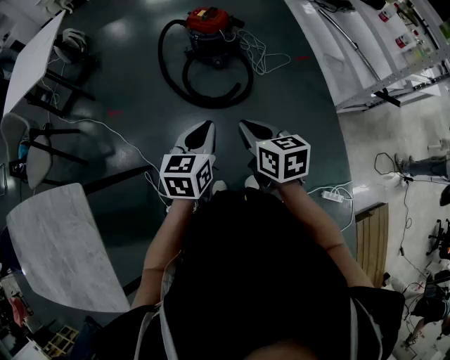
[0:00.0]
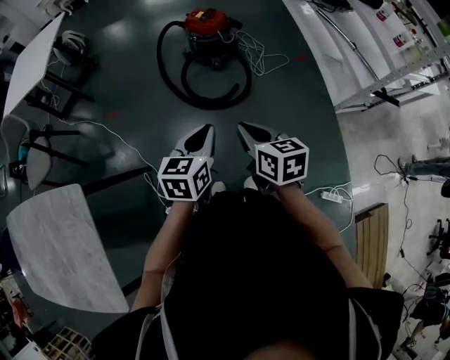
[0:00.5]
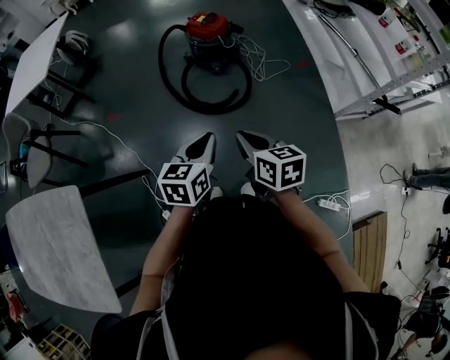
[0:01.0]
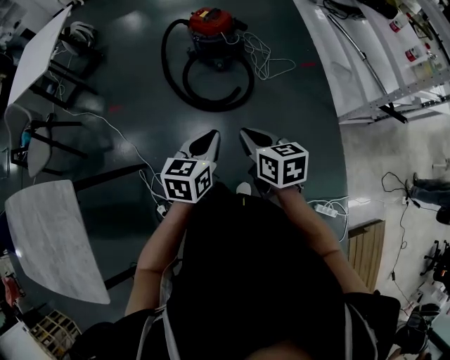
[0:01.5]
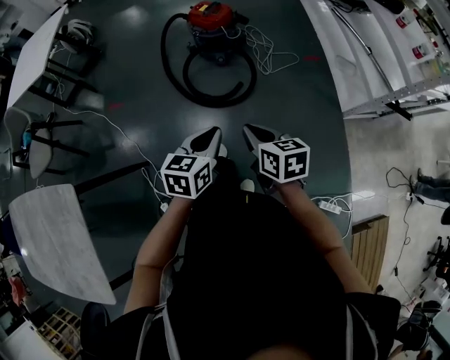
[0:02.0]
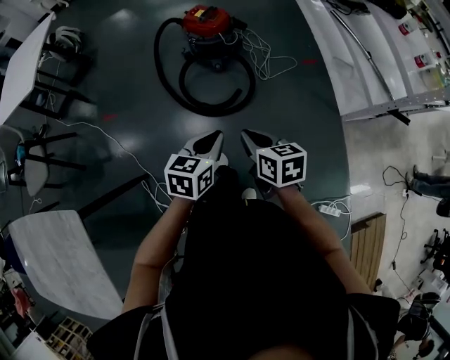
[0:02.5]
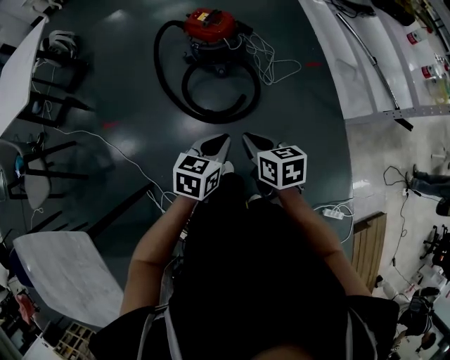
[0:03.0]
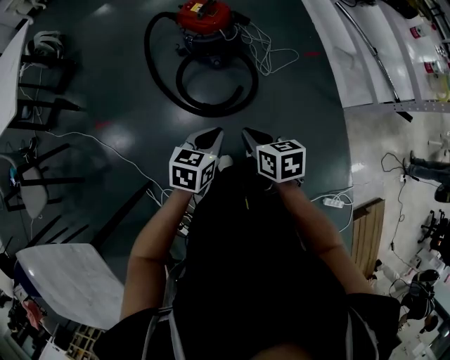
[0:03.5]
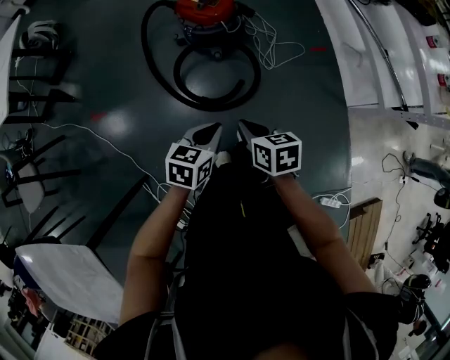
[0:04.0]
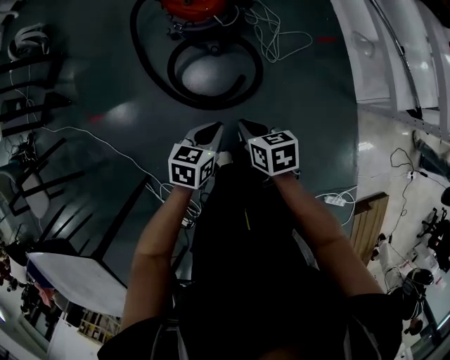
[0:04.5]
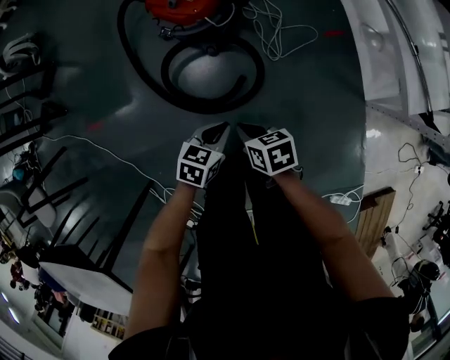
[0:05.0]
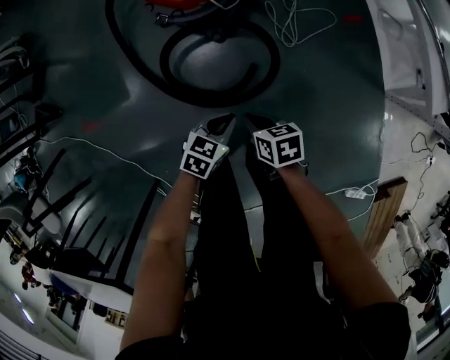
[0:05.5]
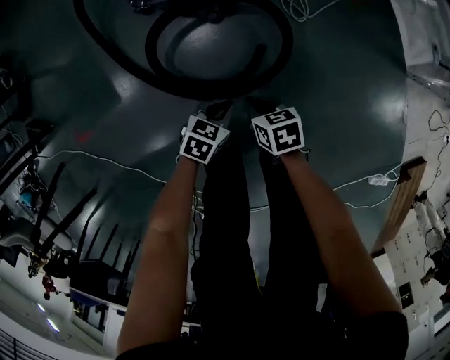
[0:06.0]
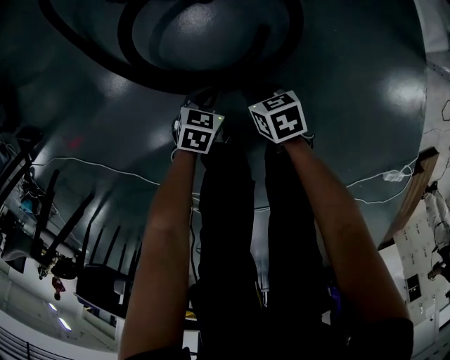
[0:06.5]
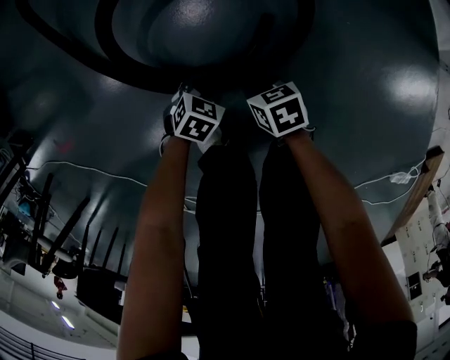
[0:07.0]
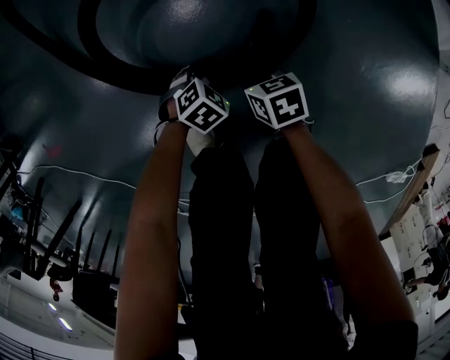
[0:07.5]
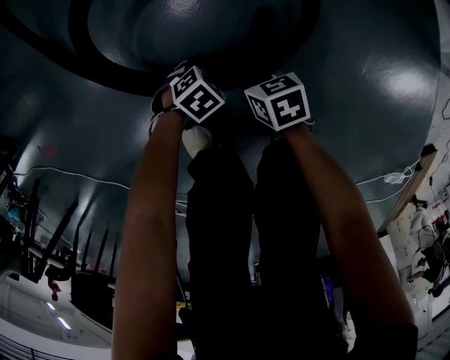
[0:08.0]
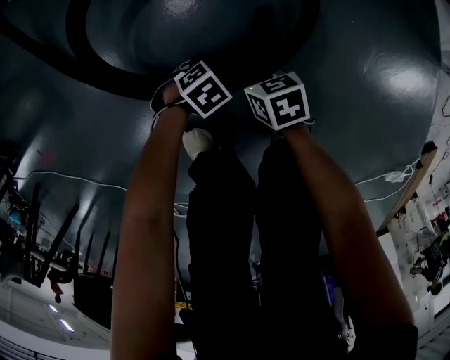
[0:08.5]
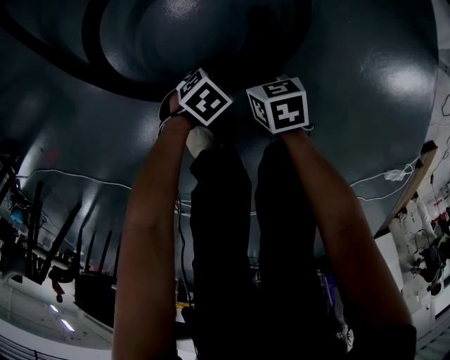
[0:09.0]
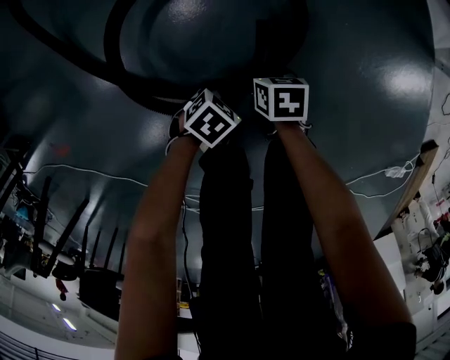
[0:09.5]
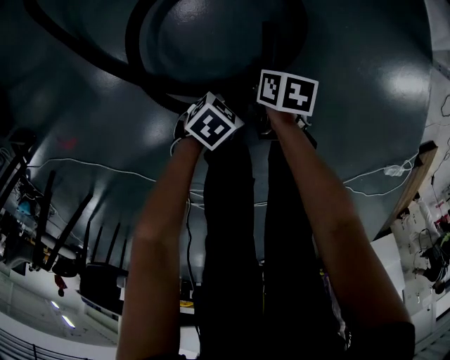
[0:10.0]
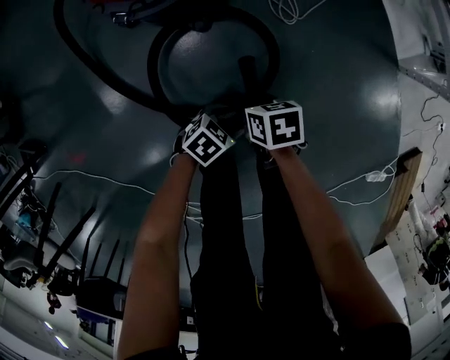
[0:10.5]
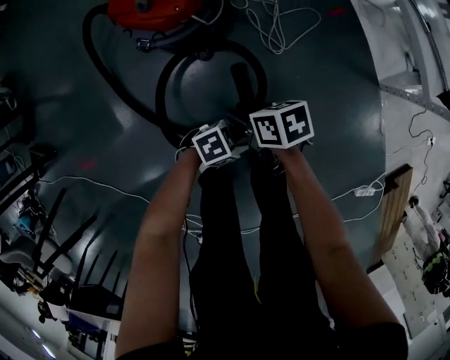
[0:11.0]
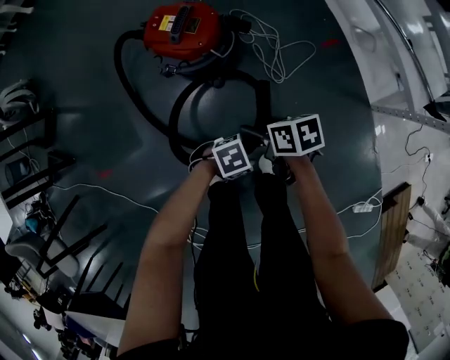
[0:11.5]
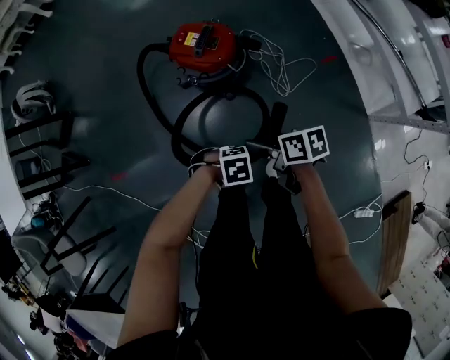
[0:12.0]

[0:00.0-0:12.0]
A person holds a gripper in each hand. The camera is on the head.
0.0 to 2.0 s: The left gripper shifts roughly 10 cm to the right and downward; the right gripper goes roughly 10 cm to the right, downward and forward.
2.0 to 4.0 s: Both grippers travel together forward and downward, some 25 cm.
4.0 to 6.0 s: Both grippers move downward, some 40 cm. The left gripper swivels about 30 degrees.
6.0 to 8.0 s: Both grippers travel together downward, some 25 cm. The left gripper turns by roughly 30 degrees, and opens.
8.0 to 10.0 s: The right gripper heads upward, covering some 5 cm, turns by roughly 40 degrees, and opens its fingers, while the left gripper goes about 15 cm upward, and swivels roughly 20 degrees.
10.0 to 12.0 s: Both grippers move upward, some 50 cm. The right gripper swivels about 30 degrees, and opens its fingers. The left gripper turns by roughly 40 degrees.

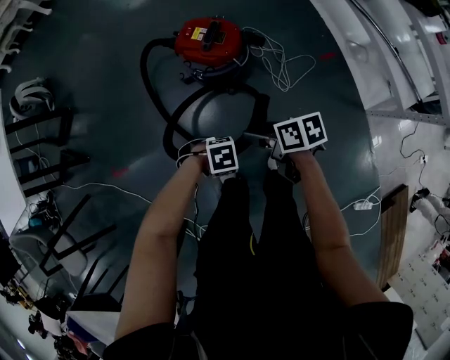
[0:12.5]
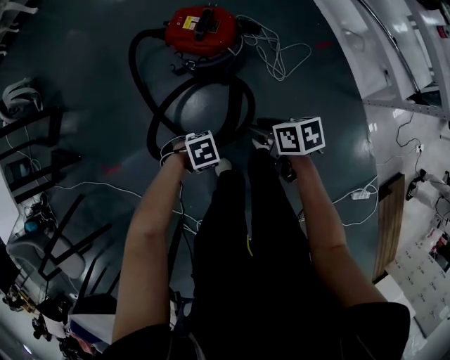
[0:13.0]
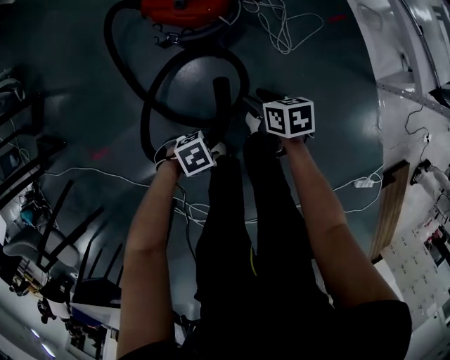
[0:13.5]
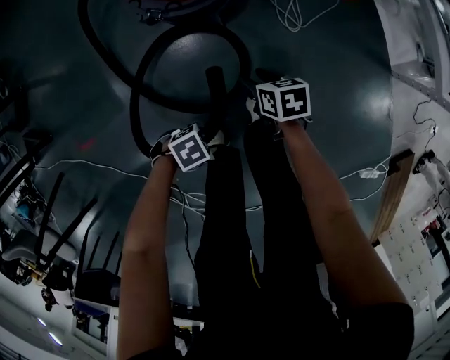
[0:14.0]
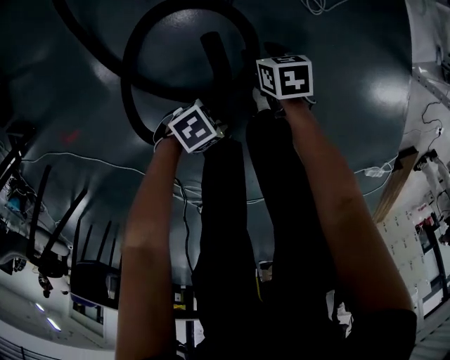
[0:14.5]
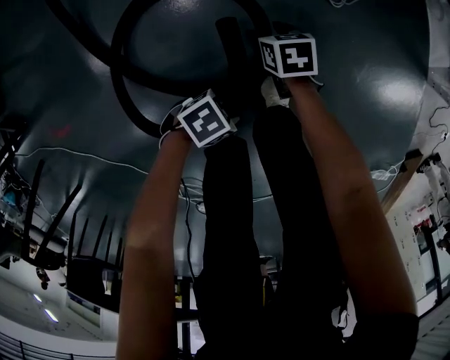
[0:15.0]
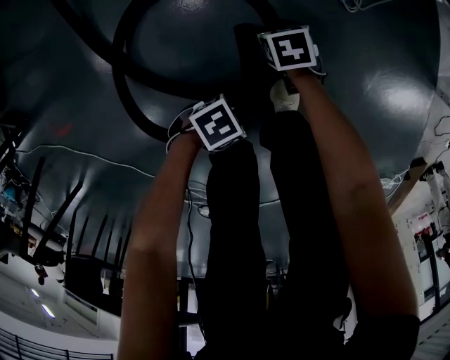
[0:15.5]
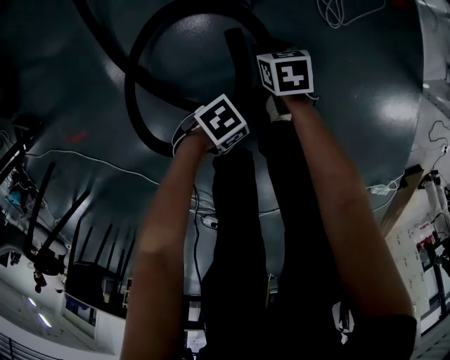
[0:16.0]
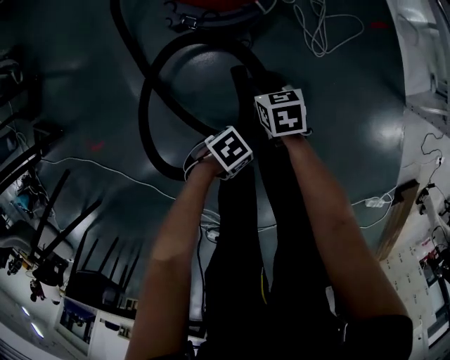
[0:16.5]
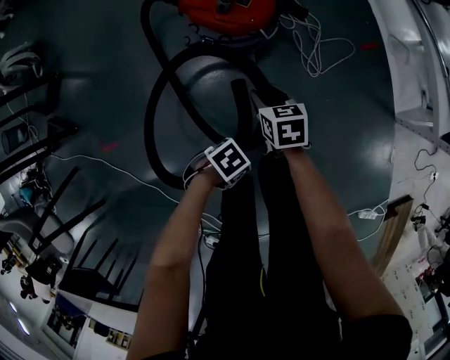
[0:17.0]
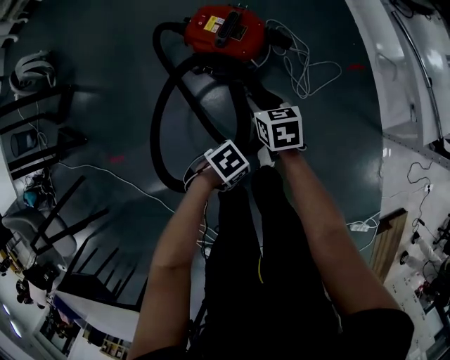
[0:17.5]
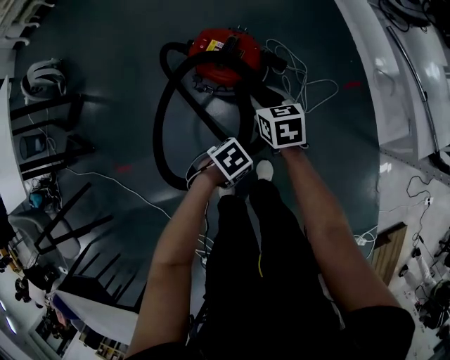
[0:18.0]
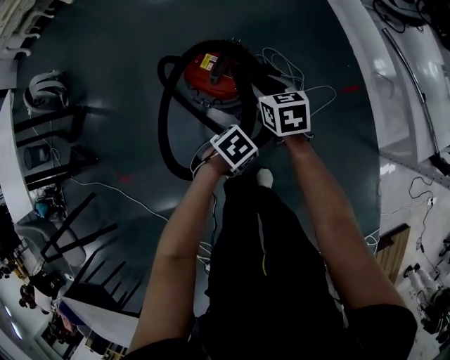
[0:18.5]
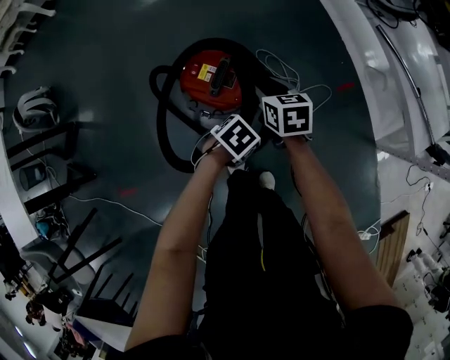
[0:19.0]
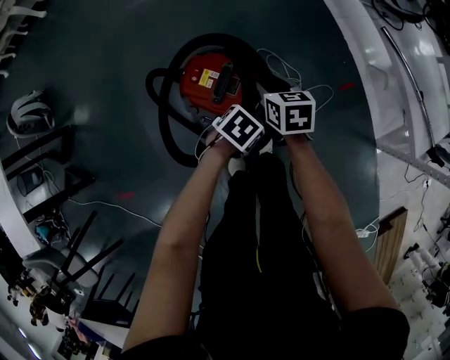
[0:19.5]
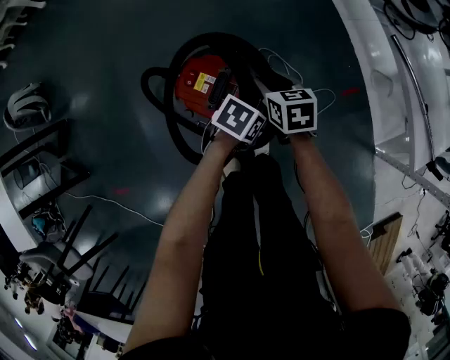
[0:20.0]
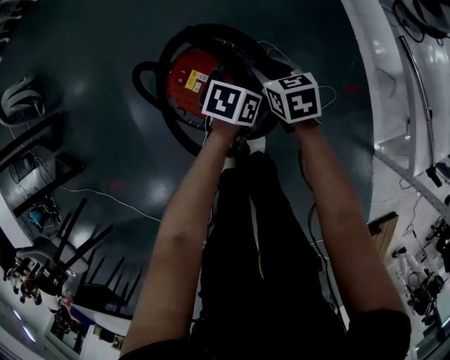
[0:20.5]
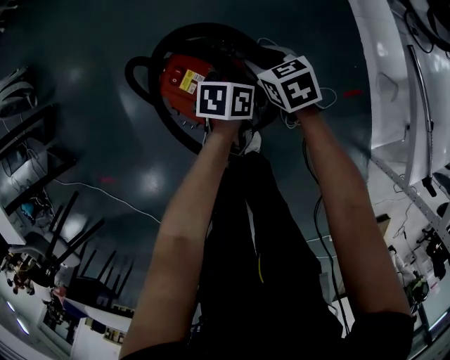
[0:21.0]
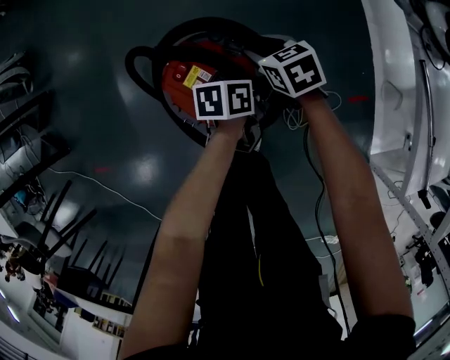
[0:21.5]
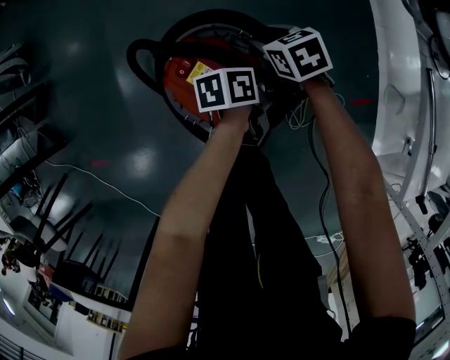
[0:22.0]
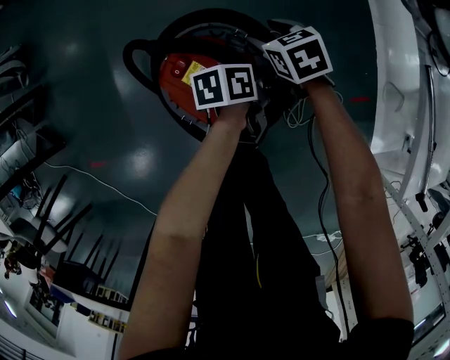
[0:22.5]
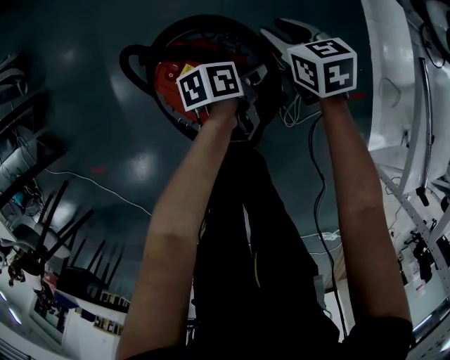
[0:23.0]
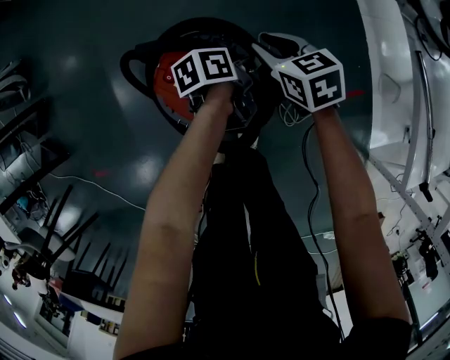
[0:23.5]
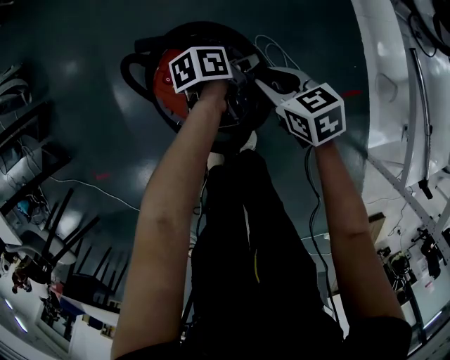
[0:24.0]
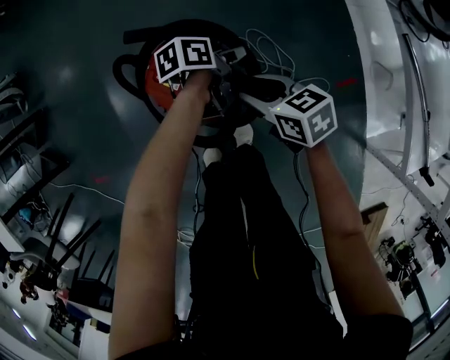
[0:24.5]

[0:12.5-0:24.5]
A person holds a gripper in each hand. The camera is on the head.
12.5 to 14.5 s: Both grippers travel together downward, some 40 cm. The right gripper rotates approximately 20 degrees. The left gripper swivels roughly 30 degrees.
14.5 to 16.5 s: The two grippers go some 10 cm upward.
16.5 to 18.5 s: The left gripper moves some 35 cm. The right gripper goes about 30 cm upward.
18.5 to 20.5 s: The left gripper changes place by some 30 cm, and swivels approximately 40 degrees, while the right gripper changes place by some 20 cm.
20.5 to 22.5 s: The left gripper changes place by approximately 10 cm, and changes its angle by some 40 degrees. Meanwhile the right gripper ends up about 15 cm from where it was, and changes its angle by approximately 20 degrees.
22.5 to 24.5 s: The right gripper shifts by approximately 15 cm, and rotates approximately 20 degrees.

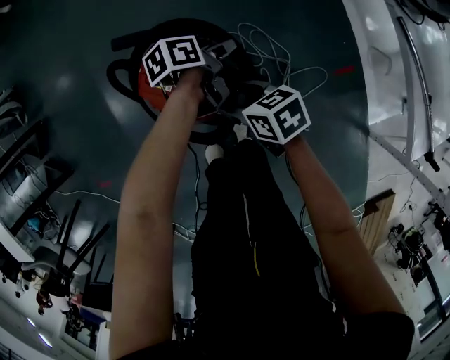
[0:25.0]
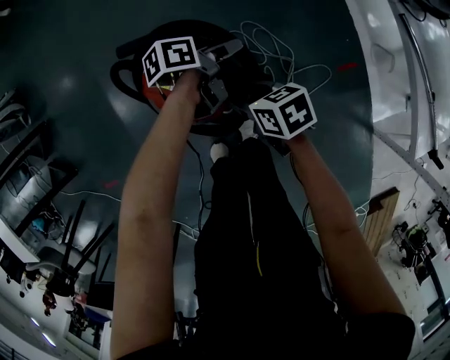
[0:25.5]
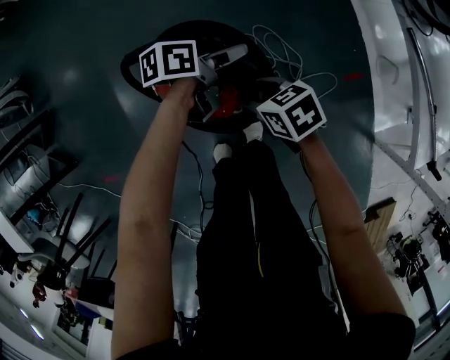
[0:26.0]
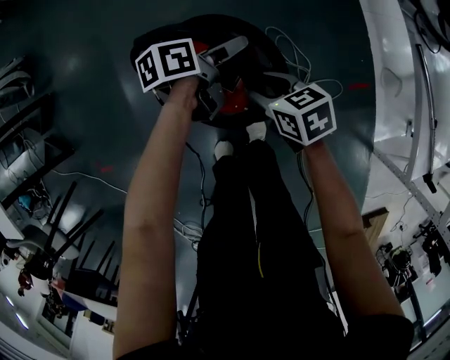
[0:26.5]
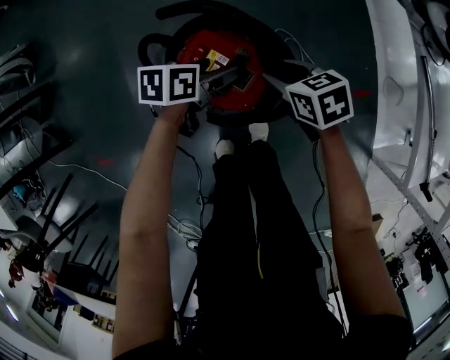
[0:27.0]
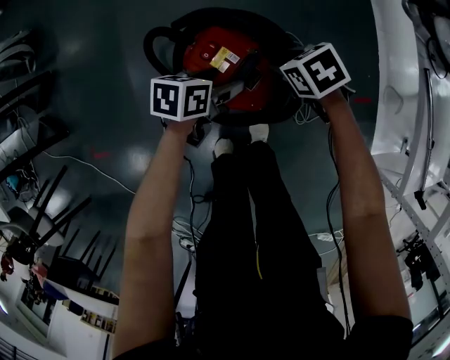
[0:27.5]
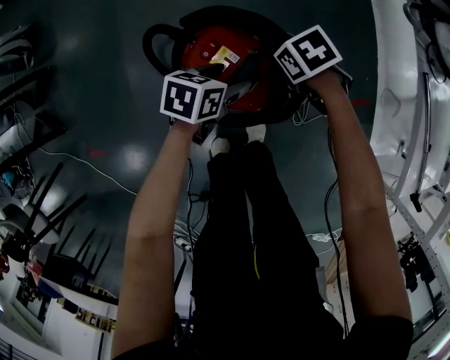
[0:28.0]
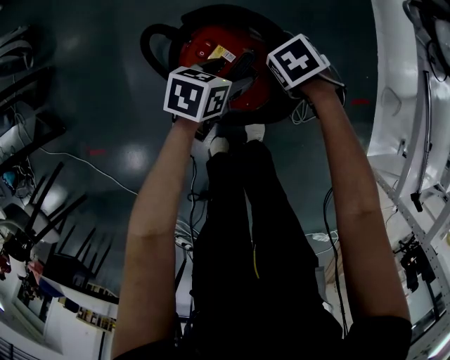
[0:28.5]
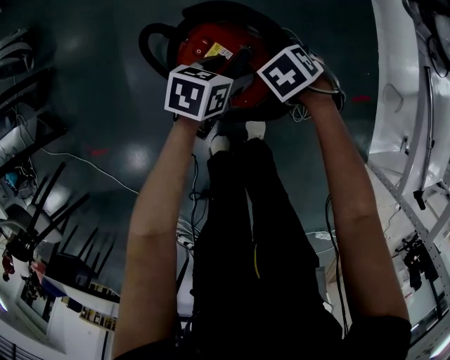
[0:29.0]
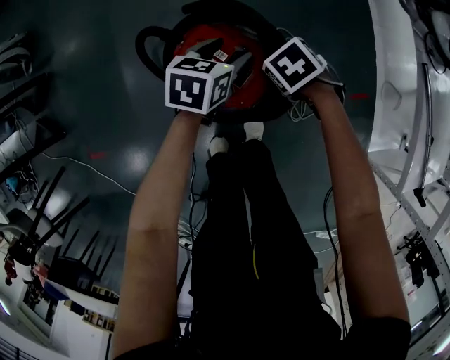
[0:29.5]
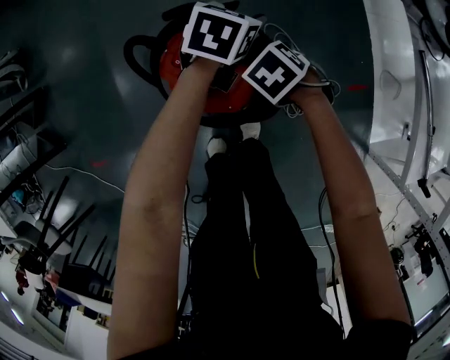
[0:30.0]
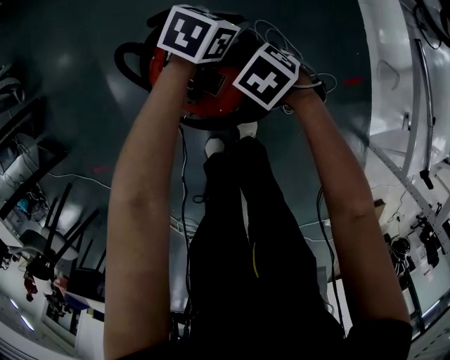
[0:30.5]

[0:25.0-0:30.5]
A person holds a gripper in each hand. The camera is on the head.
25.0 to 27.0 s: The right gripper moves roughly 5 cm. The left gripper ends up roughly 15 cm from where it was, swivels some 20 degrees, and opens.
27.0 to 28.5 s: The right gripper is displaced downward by approximately 5 cm, and tilts its fingers approximately 30 degrees downward.
28.5 to 30.5 s: The left gripper moves about 15 cm, rotates some 20 degrees, and closes up.
